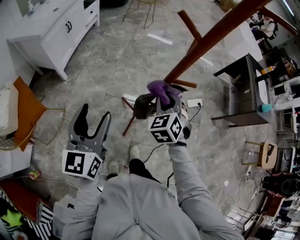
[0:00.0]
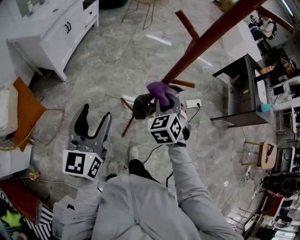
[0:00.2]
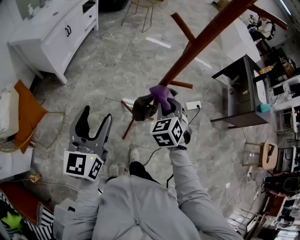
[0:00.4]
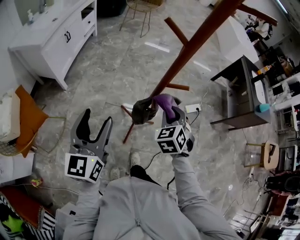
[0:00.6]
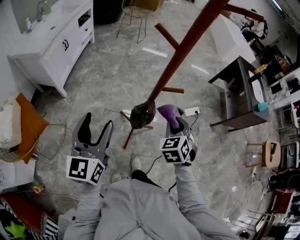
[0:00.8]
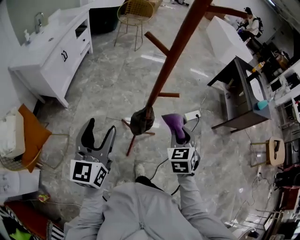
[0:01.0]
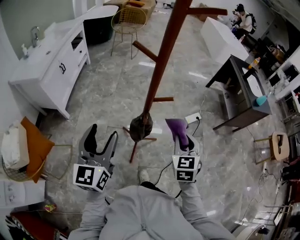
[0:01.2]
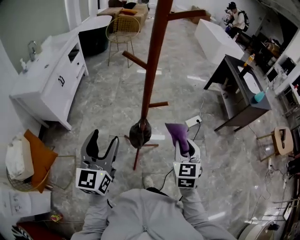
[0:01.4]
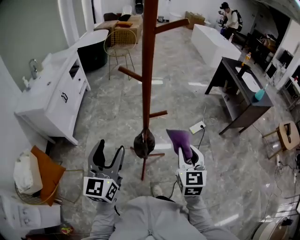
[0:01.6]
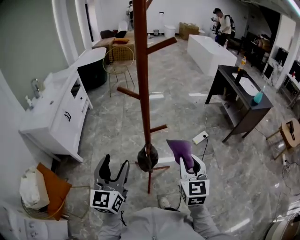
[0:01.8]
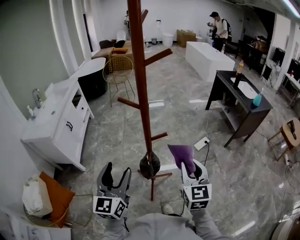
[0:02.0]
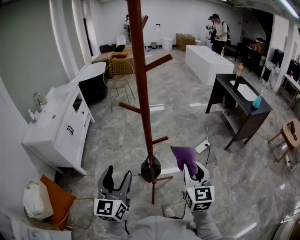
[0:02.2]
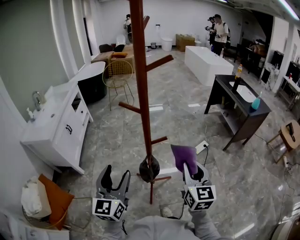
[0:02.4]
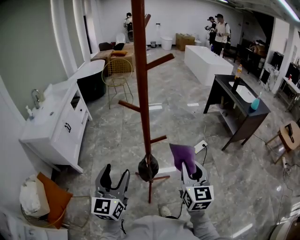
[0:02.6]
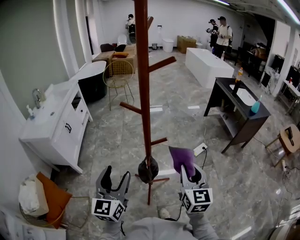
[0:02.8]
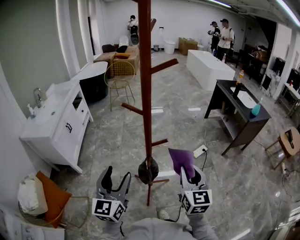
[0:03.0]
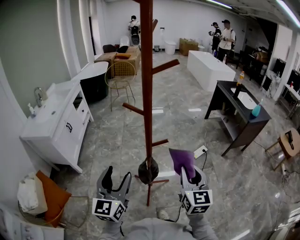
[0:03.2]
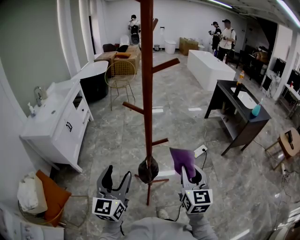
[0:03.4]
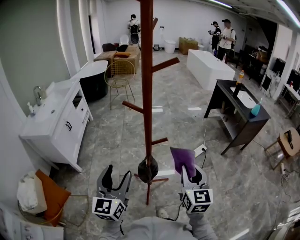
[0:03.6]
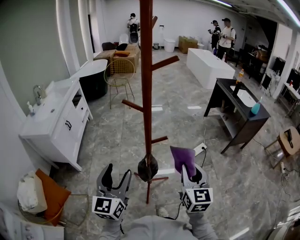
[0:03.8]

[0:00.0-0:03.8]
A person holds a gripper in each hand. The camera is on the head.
0.0 to 1.2 s: The left gripper shifts approximately 5 cm to the right. The right gripper travels to the right and backward by approximately 15 cm, and swivels roughly 30 degrees.
1.2 to 2.6 s: The right gripper heads upward, covering roughly 10 cm, and changes its angle by some 30 degrees.
2.6 to 3.8 s: Neither gripper changes place.

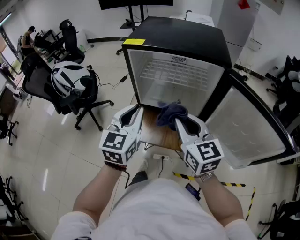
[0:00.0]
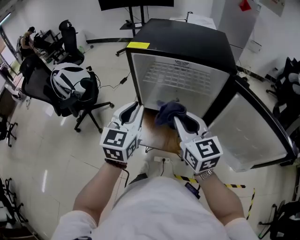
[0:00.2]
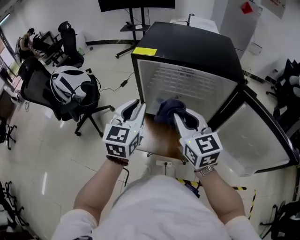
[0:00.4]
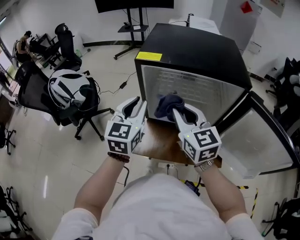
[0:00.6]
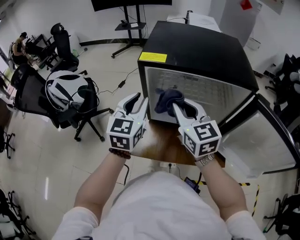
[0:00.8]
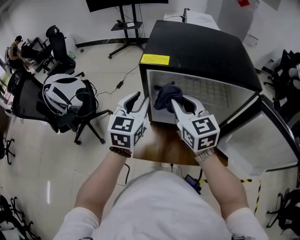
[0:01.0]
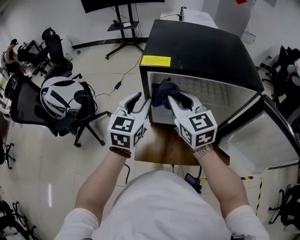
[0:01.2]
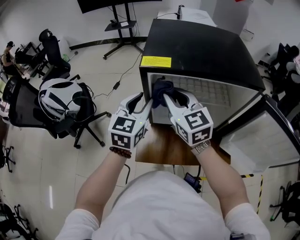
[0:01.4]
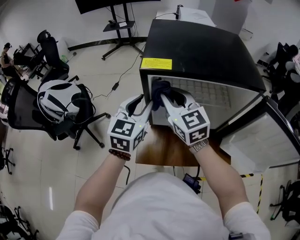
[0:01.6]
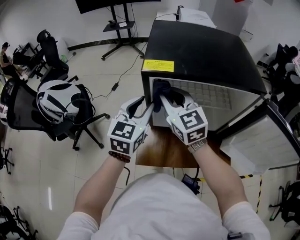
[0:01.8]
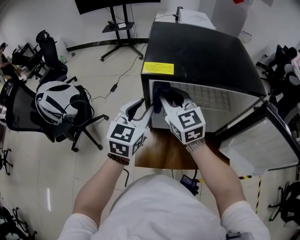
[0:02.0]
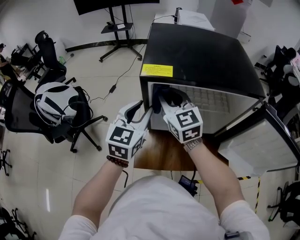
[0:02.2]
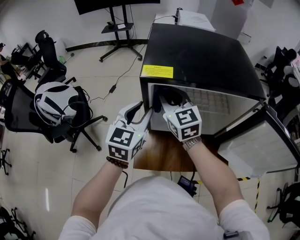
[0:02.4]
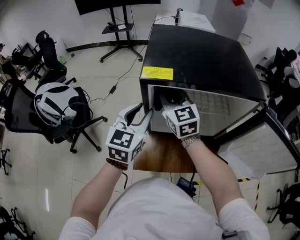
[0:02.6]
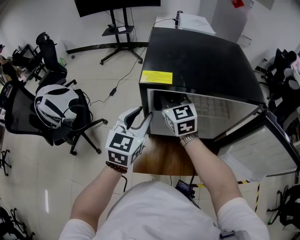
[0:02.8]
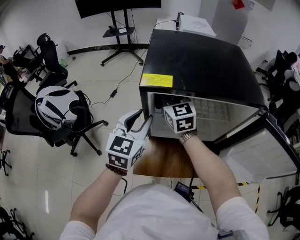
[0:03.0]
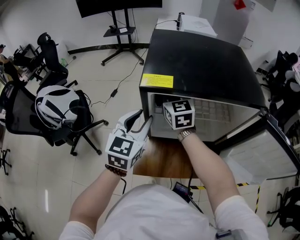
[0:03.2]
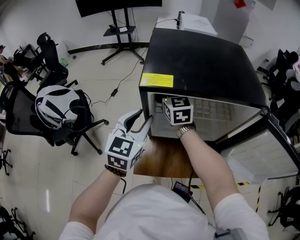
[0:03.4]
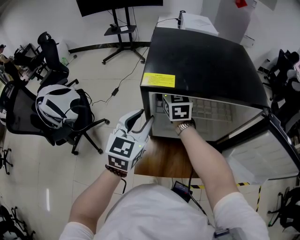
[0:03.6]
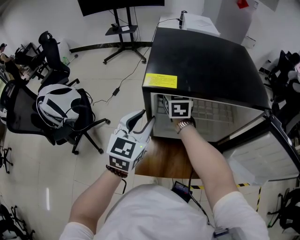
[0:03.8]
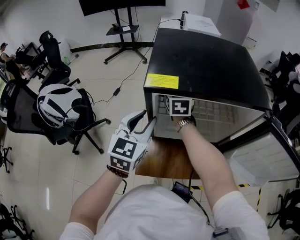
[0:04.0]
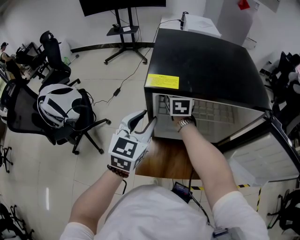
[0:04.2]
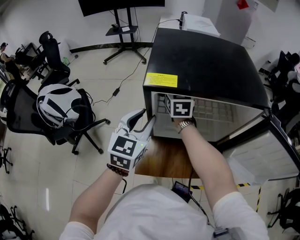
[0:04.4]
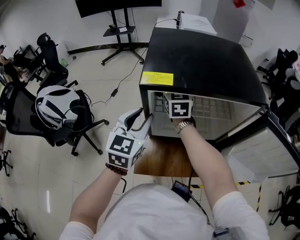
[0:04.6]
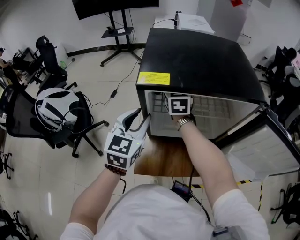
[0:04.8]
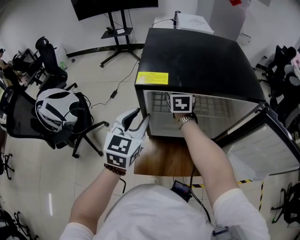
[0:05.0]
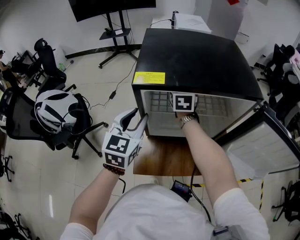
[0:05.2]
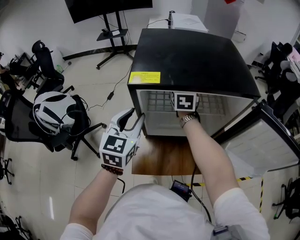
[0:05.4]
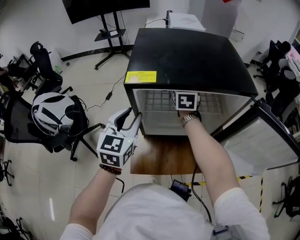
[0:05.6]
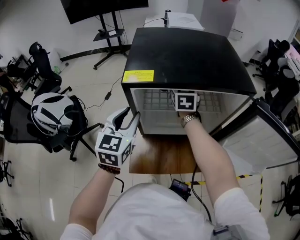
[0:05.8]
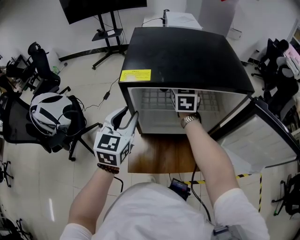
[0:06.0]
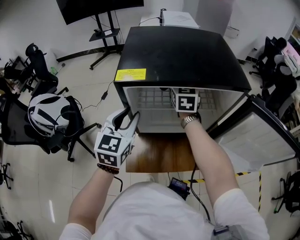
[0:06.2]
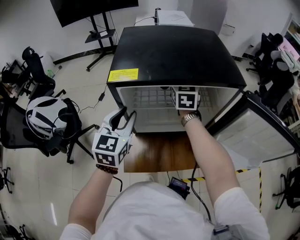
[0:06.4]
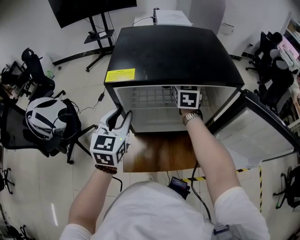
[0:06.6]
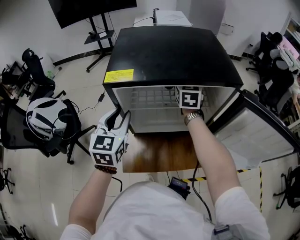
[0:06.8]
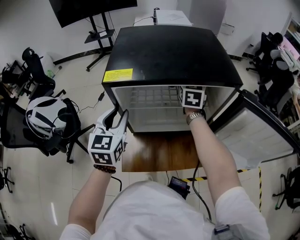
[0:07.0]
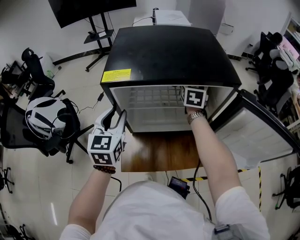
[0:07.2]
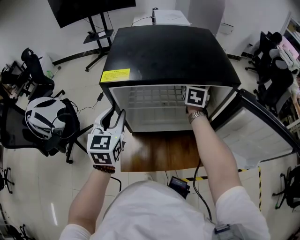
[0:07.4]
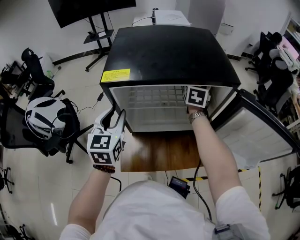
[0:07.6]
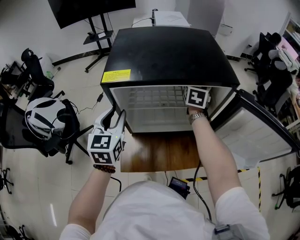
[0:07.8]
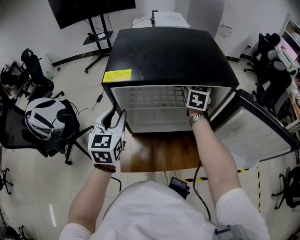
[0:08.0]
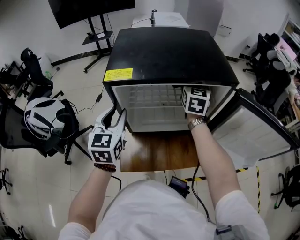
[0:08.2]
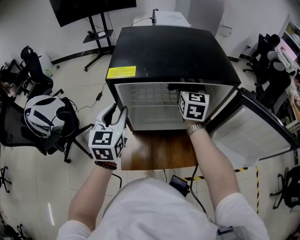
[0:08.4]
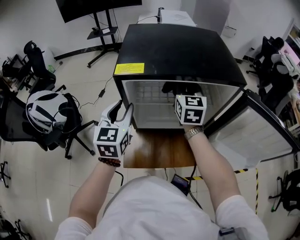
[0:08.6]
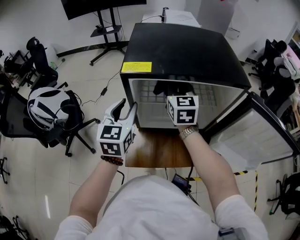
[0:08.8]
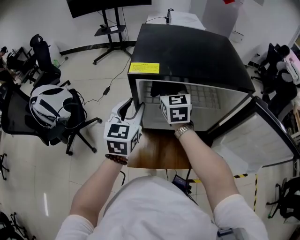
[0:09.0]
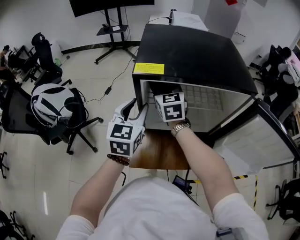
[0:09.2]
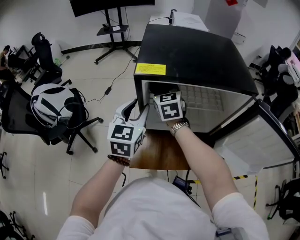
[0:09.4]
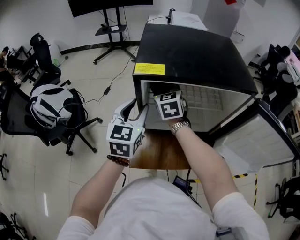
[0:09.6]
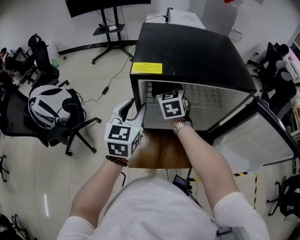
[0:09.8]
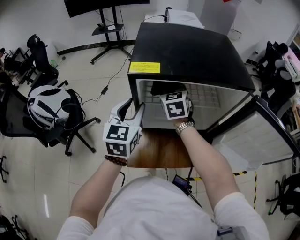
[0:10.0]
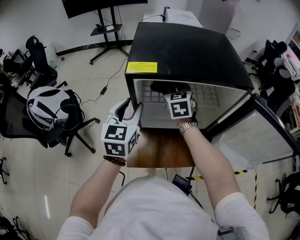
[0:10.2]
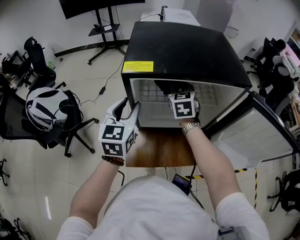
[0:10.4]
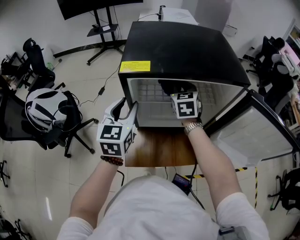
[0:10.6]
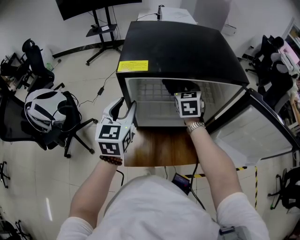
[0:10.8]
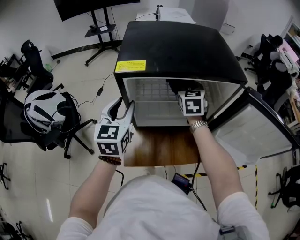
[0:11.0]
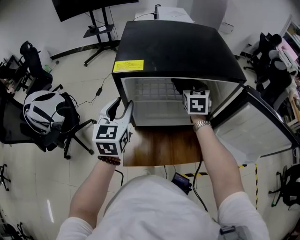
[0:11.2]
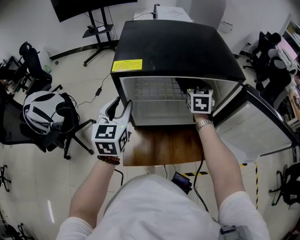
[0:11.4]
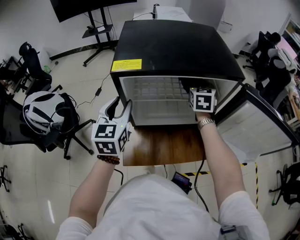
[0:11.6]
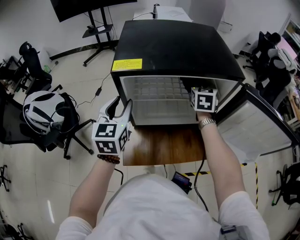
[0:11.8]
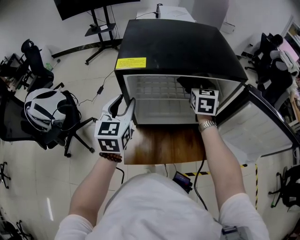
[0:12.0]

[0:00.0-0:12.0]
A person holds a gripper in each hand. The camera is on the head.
0.0 to 1.6 s: The left gripper goes about 20 cm forward, and opens its fingers. The right gripper shifts about 30 cm forward and to the left.
1.6 to 3.0 s: The right gripper heads forward, covering roughly 10 cm.
3.0 to 4.4 s: The right gripper moves forward, about 5 cm.
4.4 to 6.0 s: The right gripper goes approximately 10 cm to the right.
6.0 to 7.6 s: The right gripper is displaced to the right by roughly 15 cm.
7.6 to 9.0 s: The right gripper travels to the left and backward by roughly 25 cm, and turns by some 30 degrees.
9.0 to 10.4 s: The right gripper shifts some 5 cm to the right.
10.4 to 12.0 s: The right gripper travels to the right by approximately 10 cm.

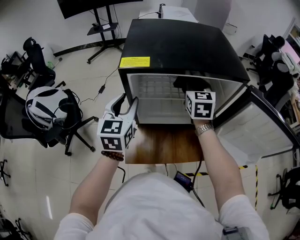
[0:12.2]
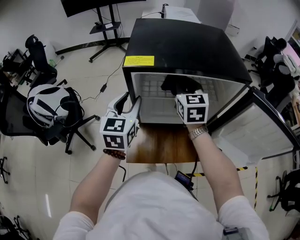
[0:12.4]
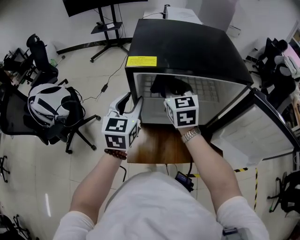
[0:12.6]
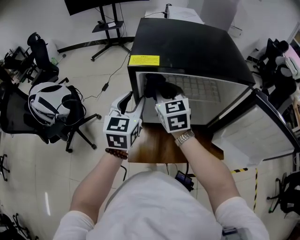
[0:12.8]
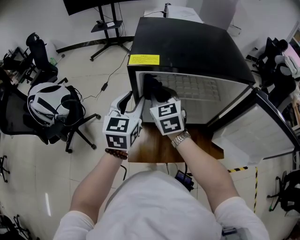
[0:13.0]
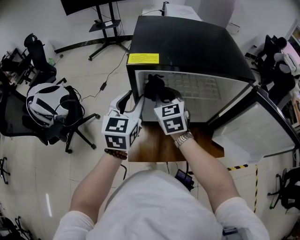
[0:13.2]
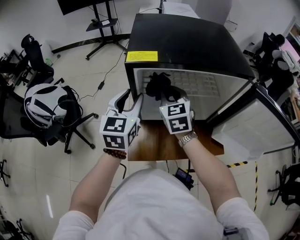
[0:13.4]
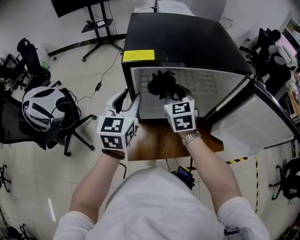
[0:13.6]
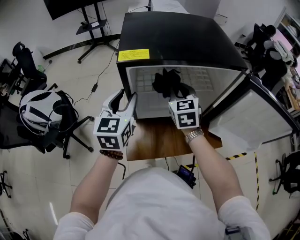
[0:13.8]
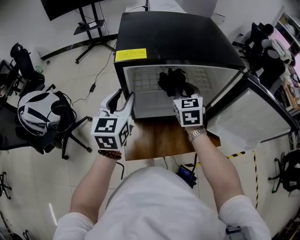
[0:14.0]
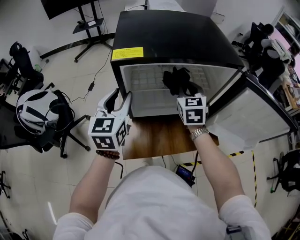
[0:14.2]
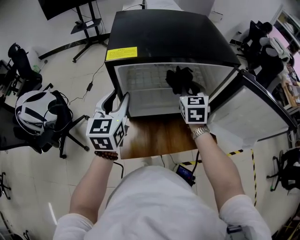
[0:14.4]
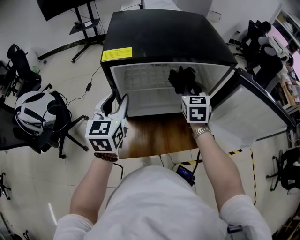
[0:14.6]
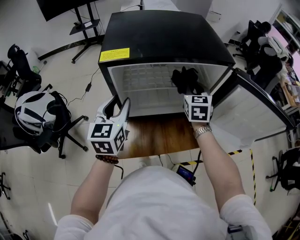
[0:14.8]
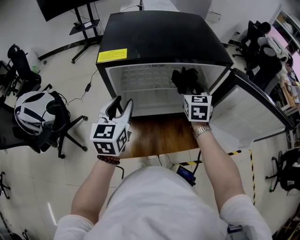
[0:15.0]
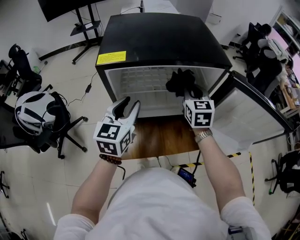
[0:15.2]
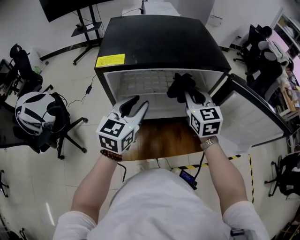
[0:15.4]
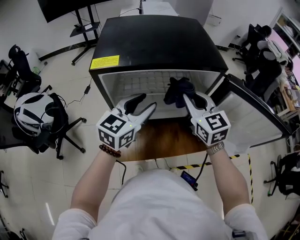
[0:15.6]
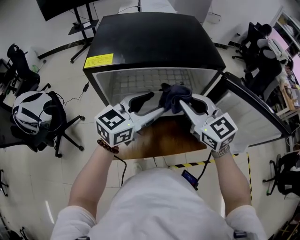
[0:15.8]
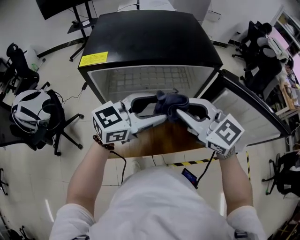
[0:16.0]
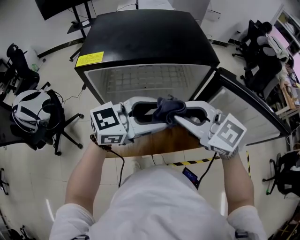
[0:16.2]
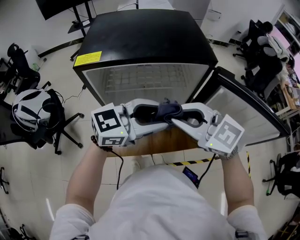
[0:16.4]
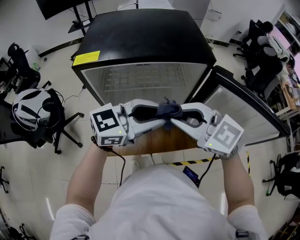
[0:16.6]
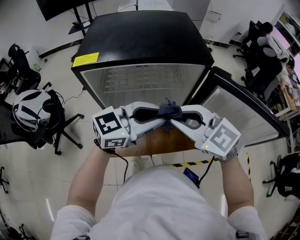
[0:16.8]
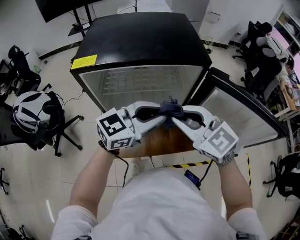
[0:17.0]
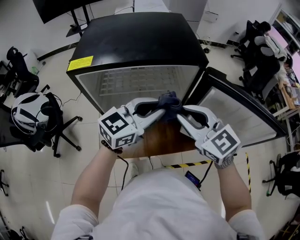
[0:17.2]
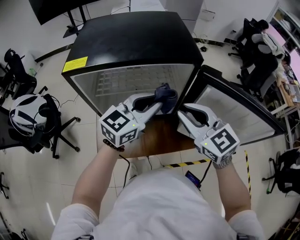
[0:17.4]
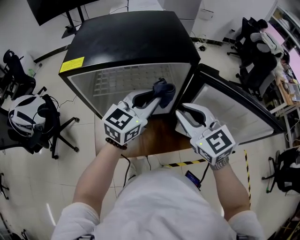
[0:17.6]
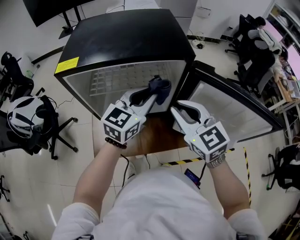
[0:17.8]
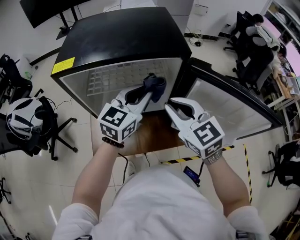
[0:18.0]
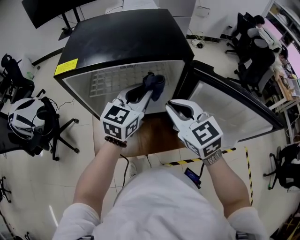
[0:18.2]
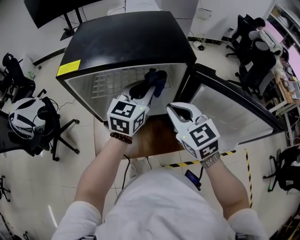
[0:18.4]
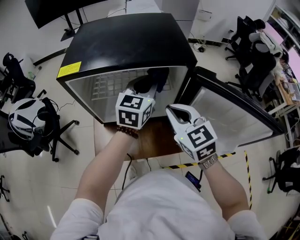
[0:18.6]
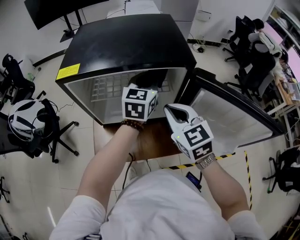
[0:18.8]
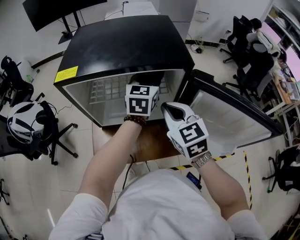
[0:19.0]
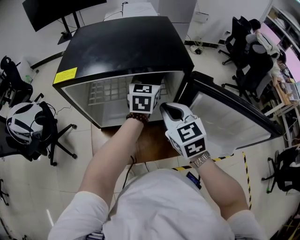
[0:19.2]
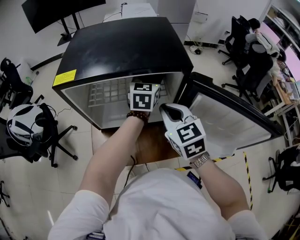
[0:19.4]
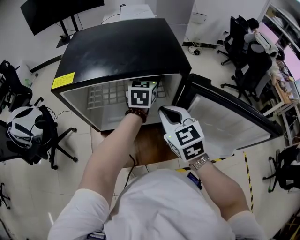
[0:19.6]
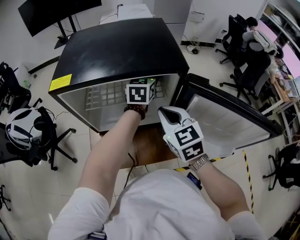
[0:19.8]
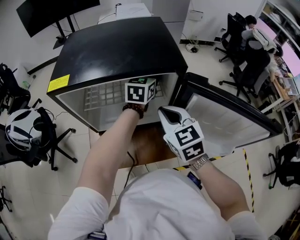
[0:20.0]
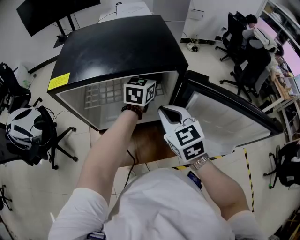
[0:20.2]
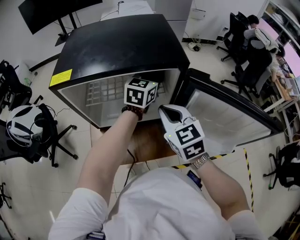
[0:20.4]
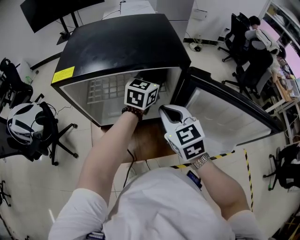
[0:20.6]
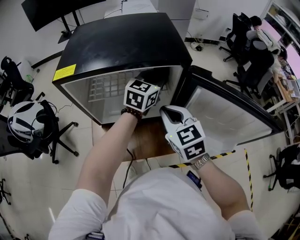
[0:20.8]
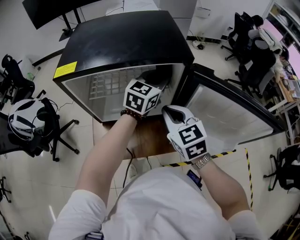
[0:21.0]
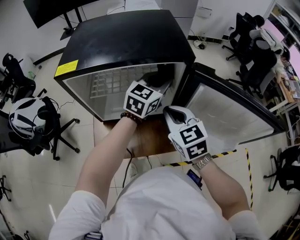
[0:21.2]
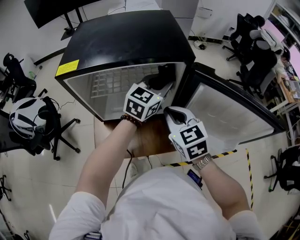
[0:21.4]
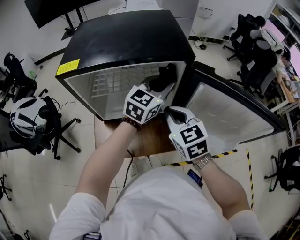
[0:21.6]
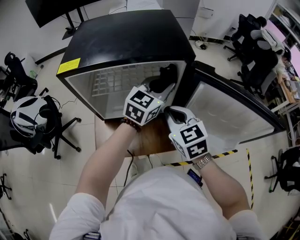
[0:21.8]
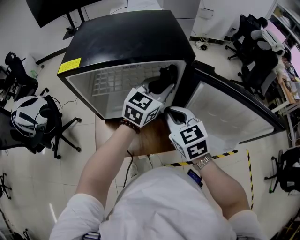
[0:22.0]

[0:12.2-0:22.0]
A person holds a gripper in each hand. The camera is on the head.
12.2 to 13.6 s: The right gripper shifts approximately 10 cm to the left and backward.
13.6 to 15.0 s: The left gripper ends up roughly 5 cm from where it was. Meanwhile the right gripper heads to the right, covering about 20 cm.
15.0 to 16.4 s: The right gripper ends up about 20 cm from where it was, and turns by some 60 degrees. Meanwhile the left gripper moves some 25 cm, and rotates roughly 60 degrees.
16.4 to 17.8 s: The right gripper changes place by roughly 10 cm, and turns by about 30 degrees. The left gripper shifts by approximately 10 cm, changes its angle by approximately 30 degrees, and closes.
17.8 to 19.2 s: The left gripper travels forward by approximately 15 cm, and turns by some 20 degrees. Meanwhile the right gripper shifts by about 5 cm.
19.2 to 20.6 s: The grippers move only a little.
20.6 to 22.0 s: The left gripper is displaced backward by approximately 10 cm.
